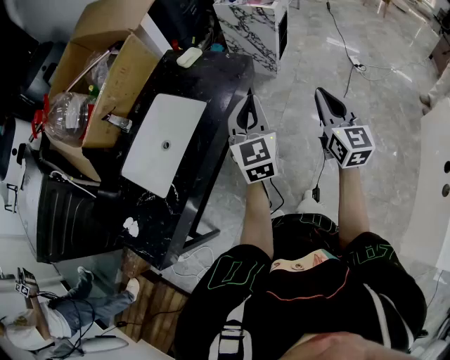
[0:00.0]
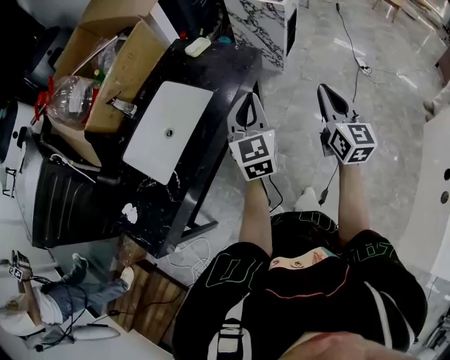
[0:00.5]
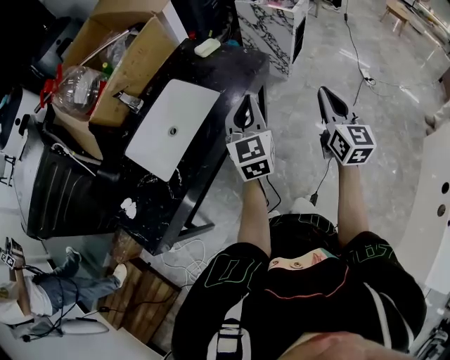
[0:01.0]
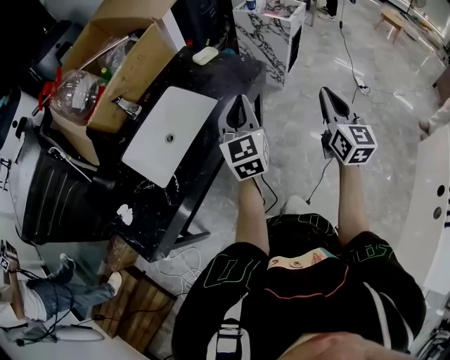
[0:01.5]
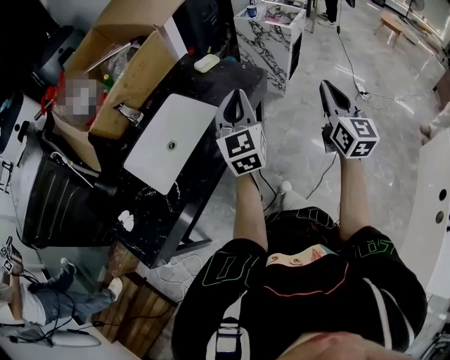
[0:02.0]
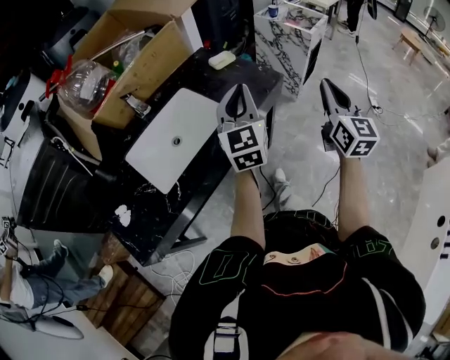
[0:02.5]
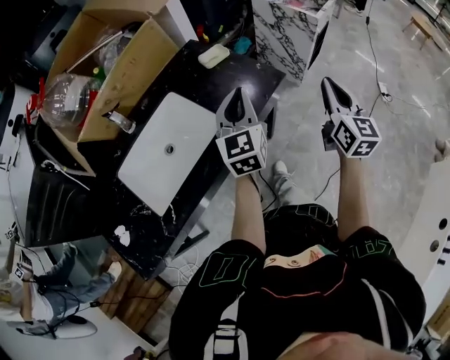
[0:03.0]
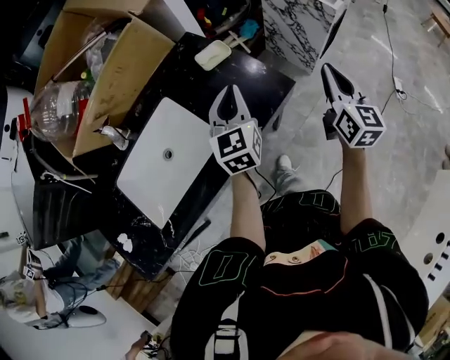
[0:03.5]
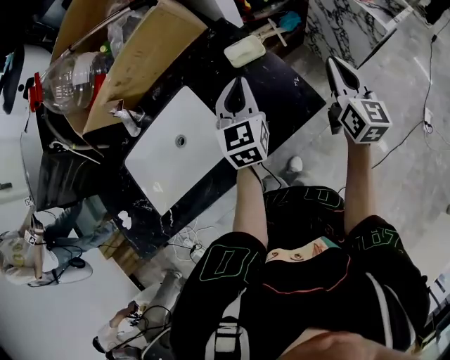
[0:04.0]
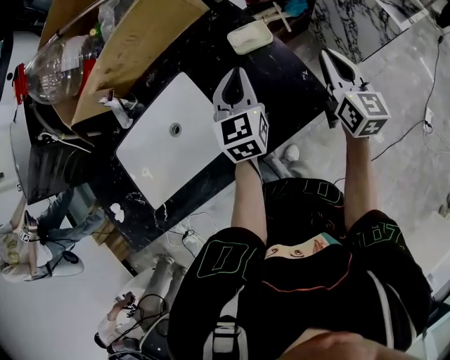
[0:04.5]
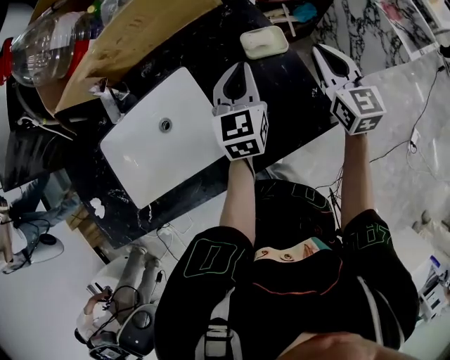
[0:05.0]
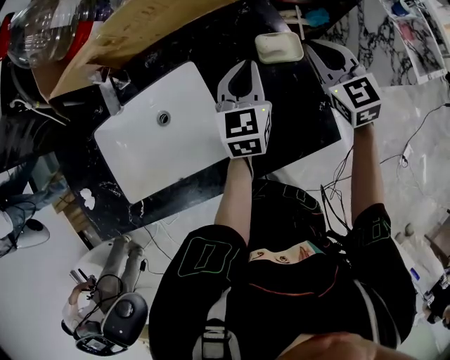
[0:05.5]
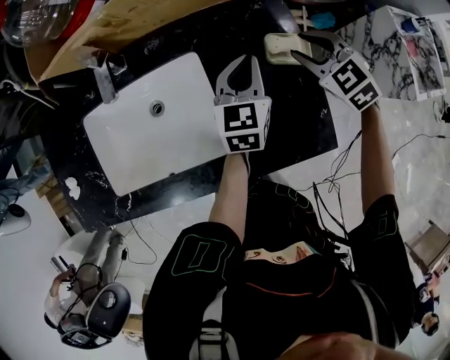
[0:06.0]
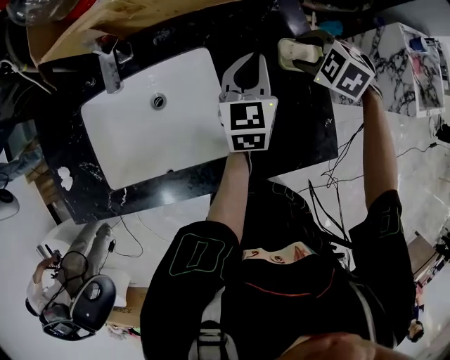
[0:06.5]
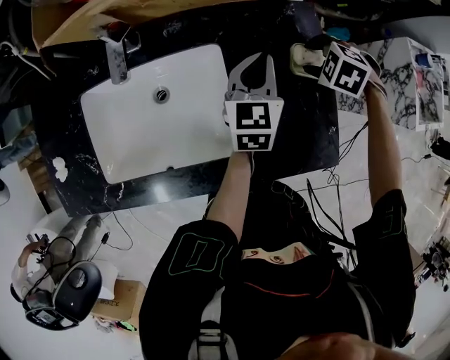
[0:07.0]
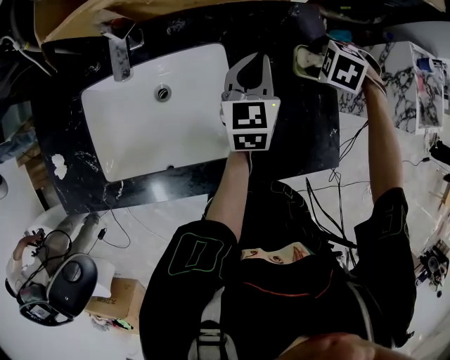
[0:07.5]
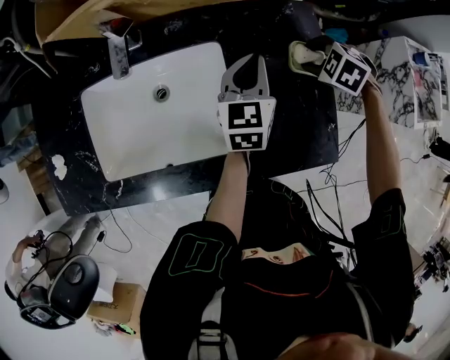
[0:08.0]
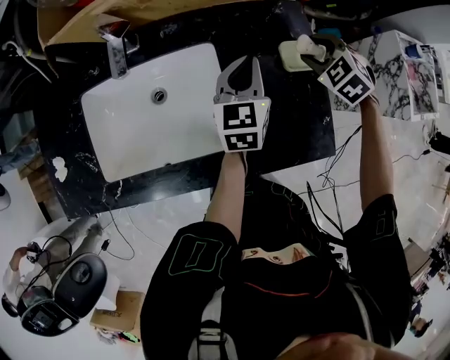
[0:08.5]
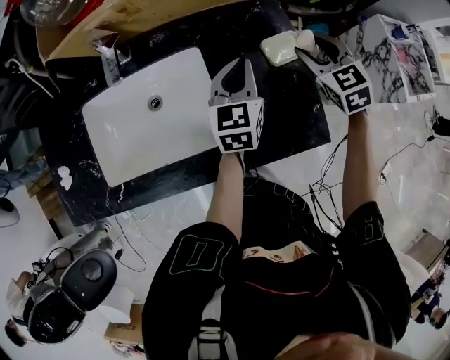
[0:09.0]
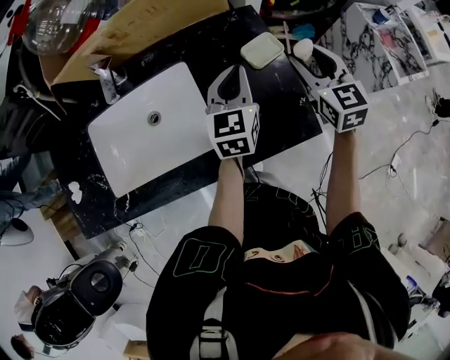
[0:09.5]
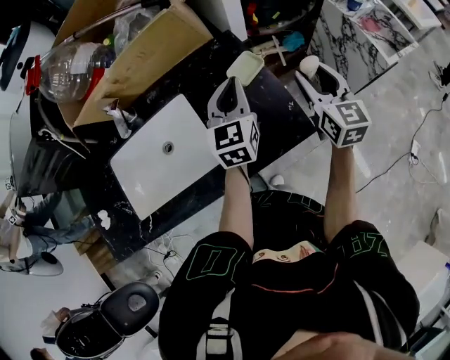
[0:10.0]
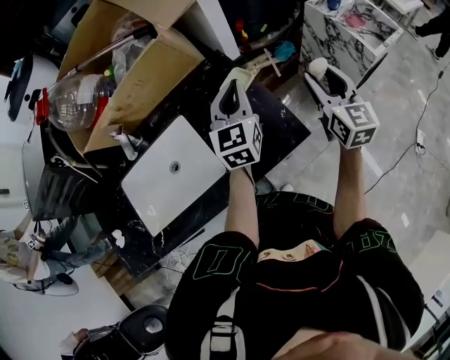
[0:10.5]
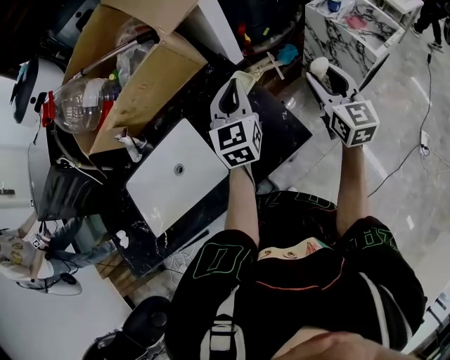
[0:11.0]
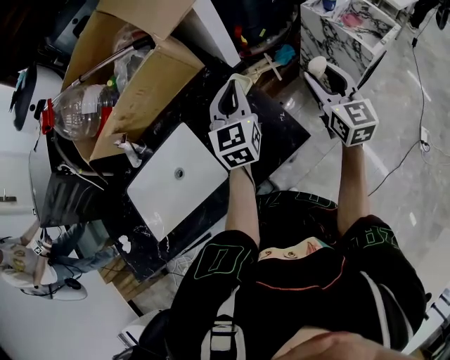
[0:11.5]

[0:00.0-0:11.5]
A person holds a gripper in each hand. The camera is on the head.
0.0 to 2.0 s: The left gripper is displaced to the left by roughly 10 cm; the right gripper shifts approximately 5 cm upward.
2.0 to 4.0 s: Both grippers travel together forward, roughly 40 cm. The right gripper changes its angle by approximately 30 degrees. Meanwhile the left gripper changes its angle by about 30 degrees.
4.0 to 6.0 s: The right gripper ends up approximately 30 cm from where it was, angles its fingers downward, by roughly 40 degrees, and opens its fingers. The left gripper ends up about 15 cm from where it was.
6.0 to 7.5 s: The left gripper changes place by about 5 cm; the right gripper shifts about 10 cm downward, and angles its fingers downward, by approximately 40 degrees.
7.5 to 9.5 s: The left gripper ends up approximately 10 cm from where it was. The right gripper shifts about 15 cm upward, and tilts its fingers roughly 60 degrees upward.
9.5 to 11.5 s: The right gripper moves to the right and backward, roughly 20 cm, and rotates about 30 degrees. The left gripper goes approximately 15 cm to the right and upward.

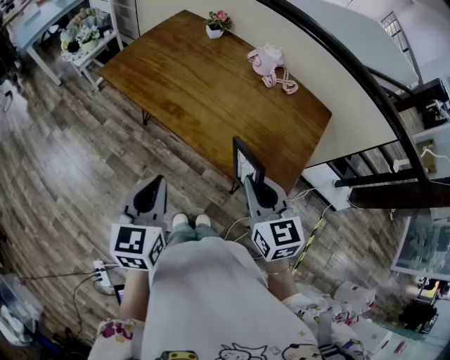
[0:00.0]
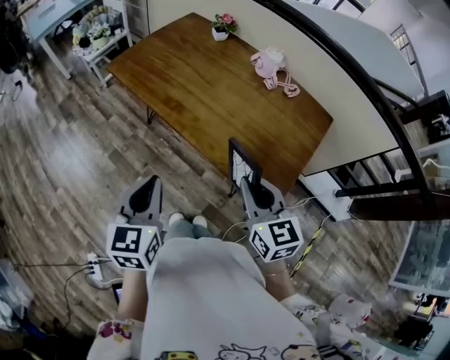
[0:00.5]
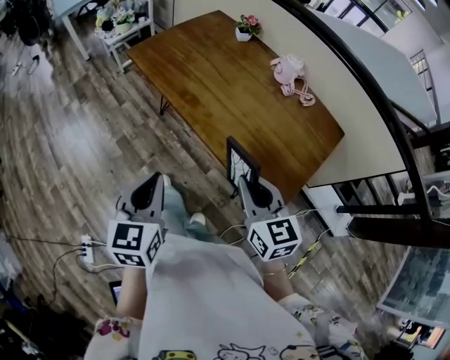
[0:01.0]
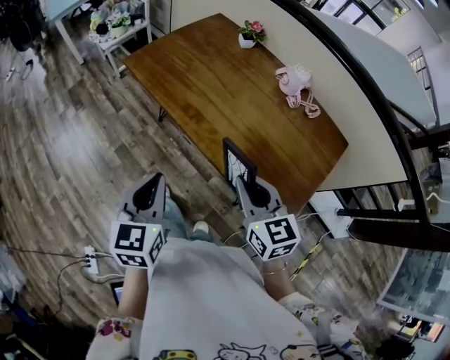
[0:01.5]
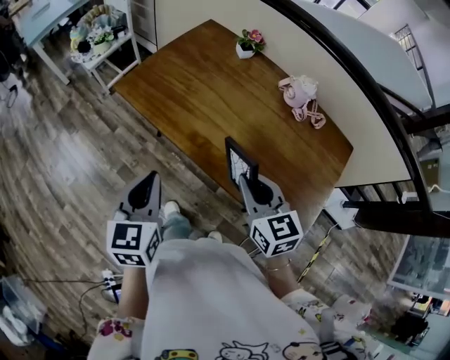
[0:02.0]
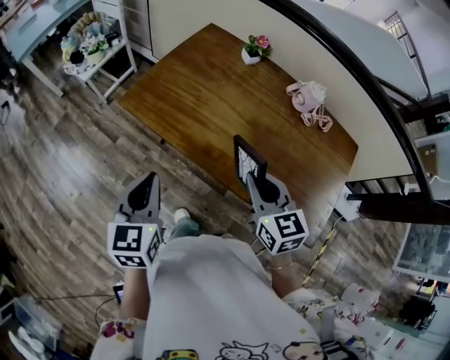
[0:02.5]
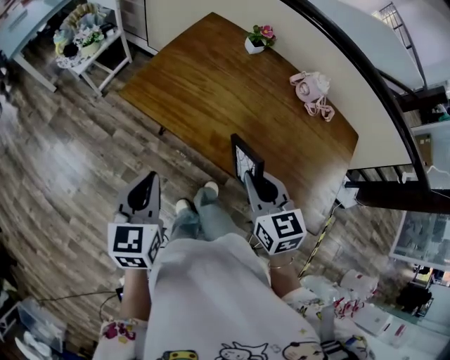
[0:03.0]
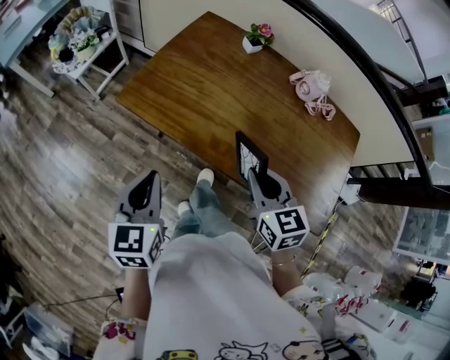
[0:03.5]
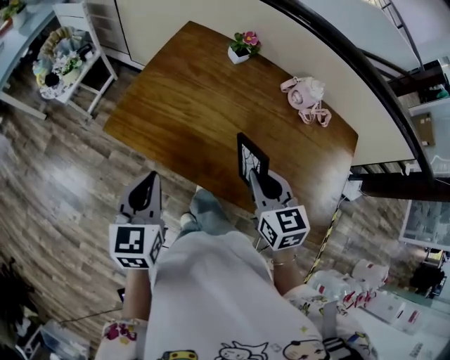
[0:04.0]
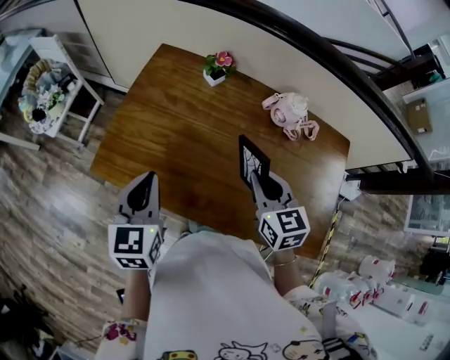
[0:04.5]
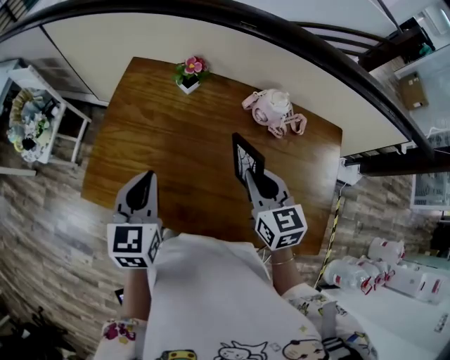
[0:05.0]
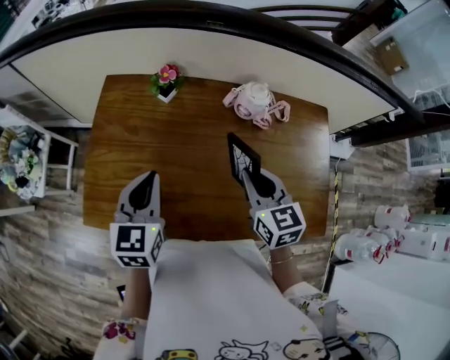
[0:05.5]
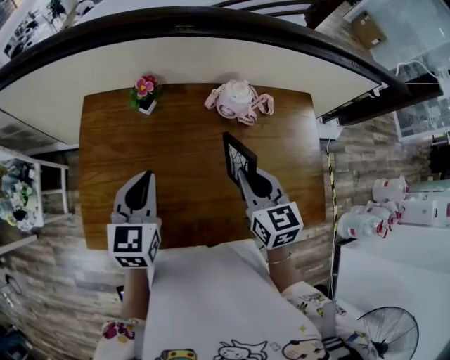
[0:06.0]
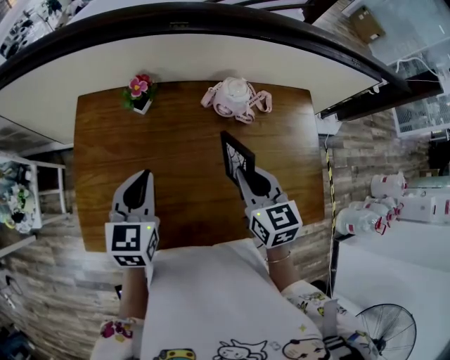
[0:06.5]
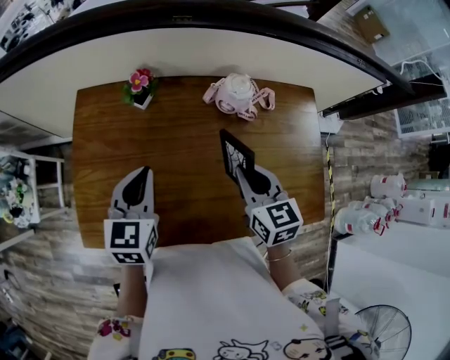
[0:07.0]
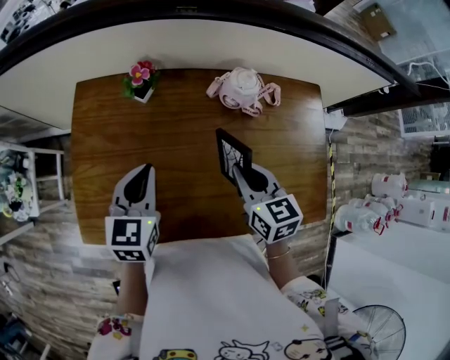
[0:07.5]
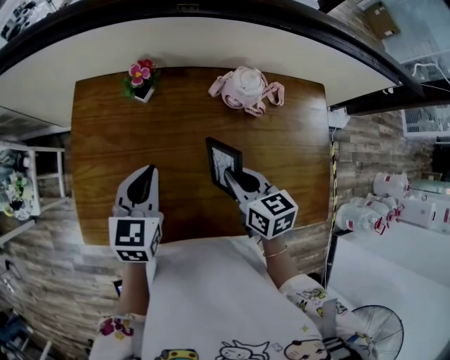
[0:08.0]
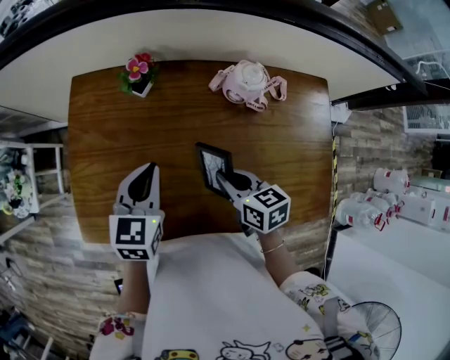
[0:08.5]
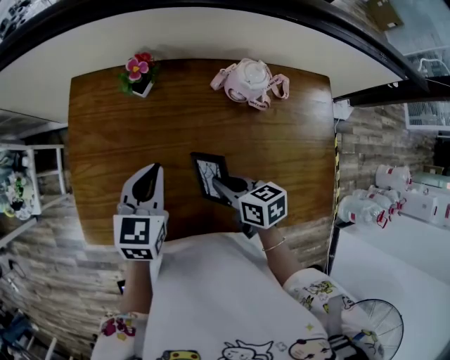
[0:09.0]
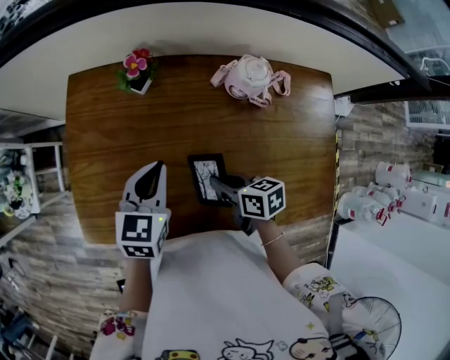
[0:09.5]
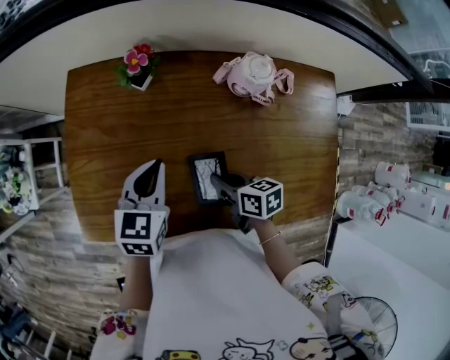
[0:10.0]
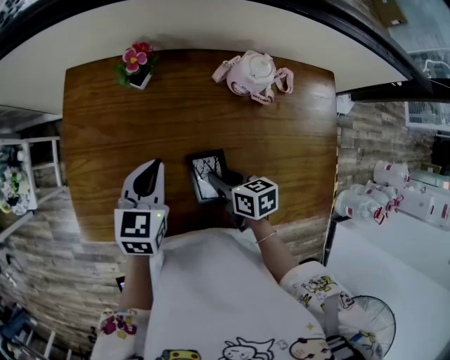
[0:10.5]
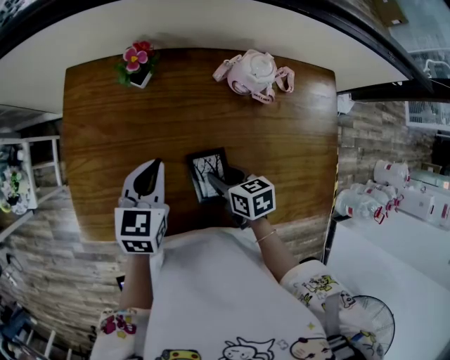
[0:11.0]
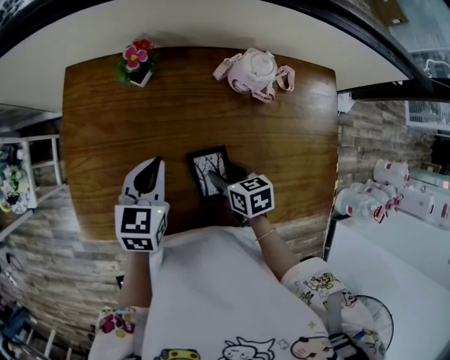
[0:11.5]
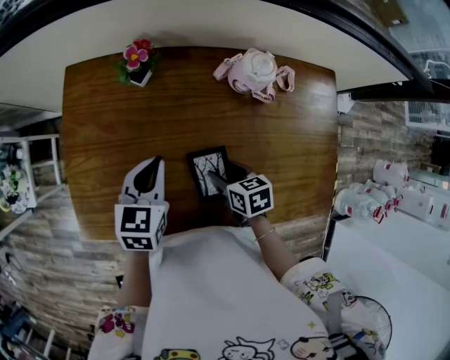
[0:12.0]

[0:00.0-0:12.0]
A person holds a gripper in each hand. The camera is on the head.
0.0 to 2.0 s: Both grippers move forward and to the left, roughly 20 cm.
2.0 to 4.0 s: The right gripper is displaced forward by some 10 cm, while the left gripper heads forward and to the left, covering about 15 cm.
4.0 to 6.0 s: The right gripper shifts by some 15 cm, and turns by about 30 degrees. Meanwhile the left gripper ends up some 30 cm from where it was, and changes its angle by some 30 degrees.
6.0 to 8.0 s: The right gripper heads downward, covering some 10 cm, and rotates roughly 20 degrees, while the left gripper moves downward, approximately 5 cm.
8.0 to 10.0 s: The right gripper goes approximately 10 cm downward, and swivels approximately 30 degrees.
10.0 to 12.0 s: The right gripper opens its fingers.

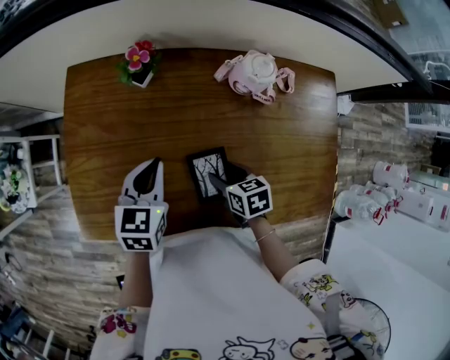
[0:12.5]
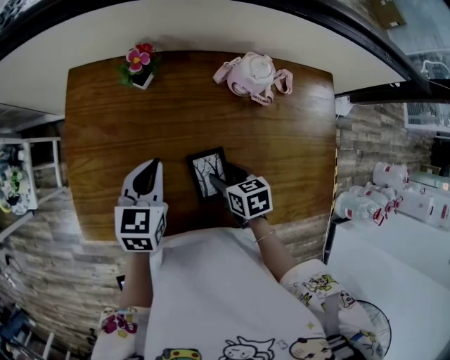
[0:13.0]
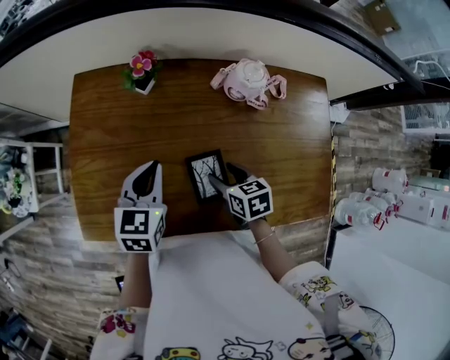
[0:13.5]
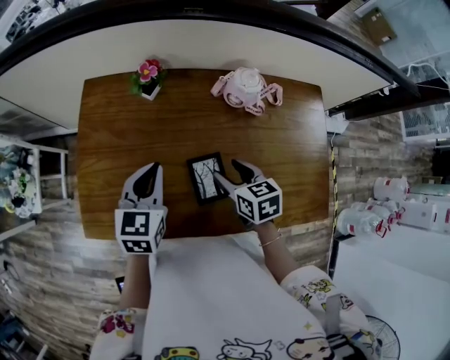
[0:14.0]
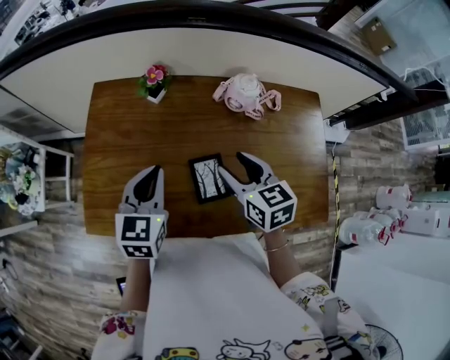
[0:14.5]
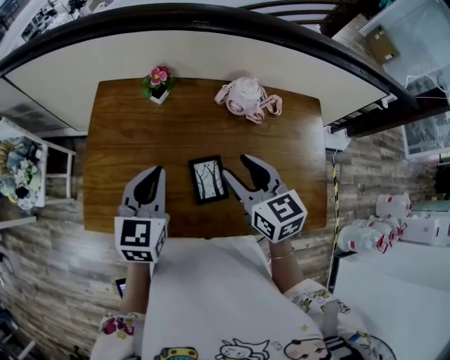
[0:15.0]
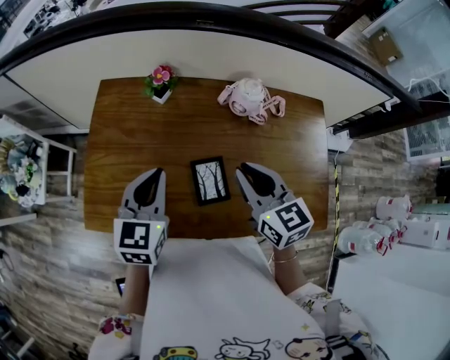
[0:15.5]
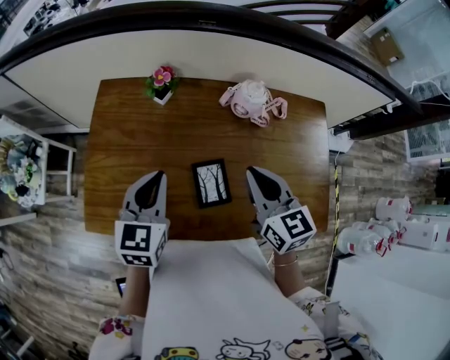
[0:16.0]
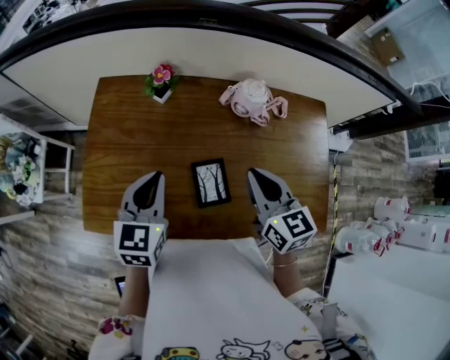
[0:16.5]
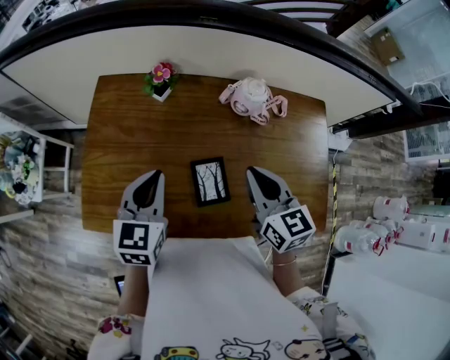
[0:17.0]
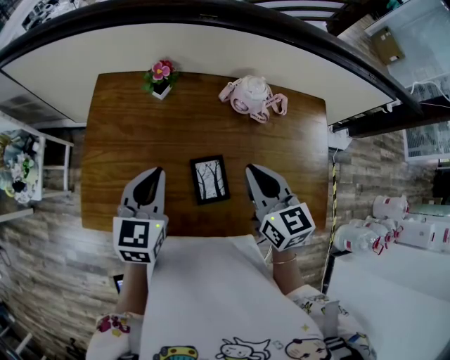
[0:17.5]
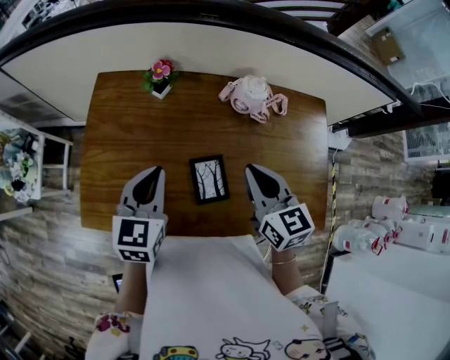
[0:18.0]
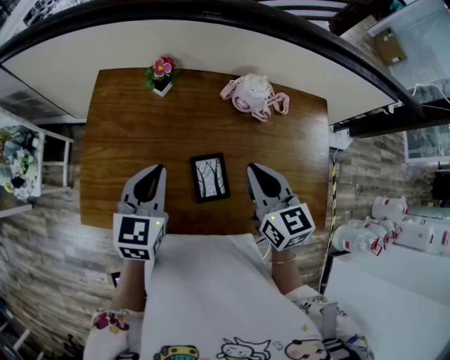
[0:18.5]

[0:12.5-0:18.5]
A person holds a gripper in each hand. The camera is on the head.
12.5 to 14.5 s: The right gripper is displaced upward by roughly 20 cm, and turns by roughly 30 degrees. The left gripper is displaced upward by roughly 10 cm.
14.5 to 16.5 s: The right gripper shifts by roughly 5 cm, and closes up.
16.5 to 18.5 s: Neither gripper changes place.
